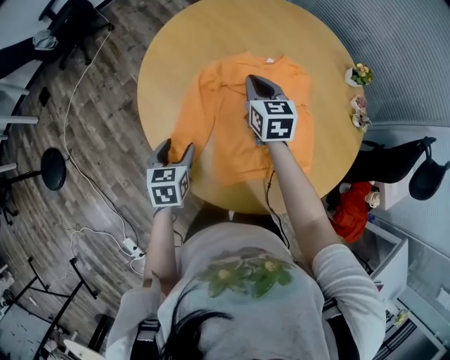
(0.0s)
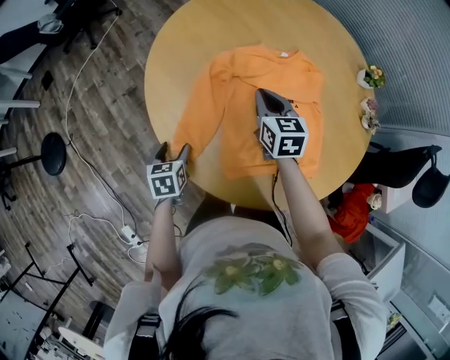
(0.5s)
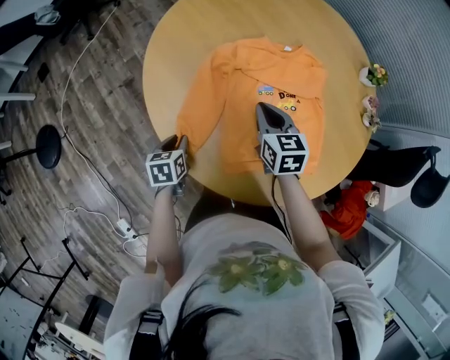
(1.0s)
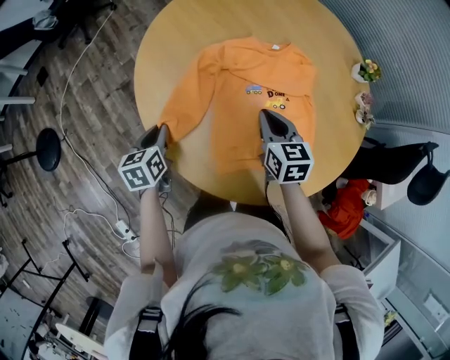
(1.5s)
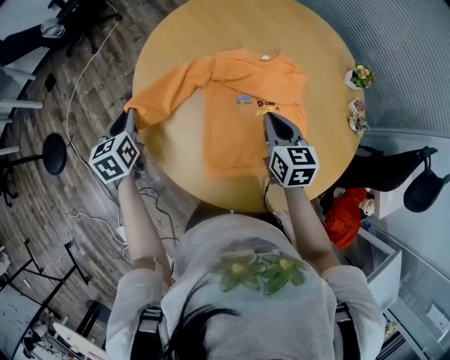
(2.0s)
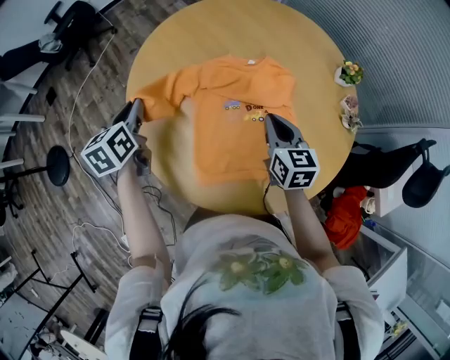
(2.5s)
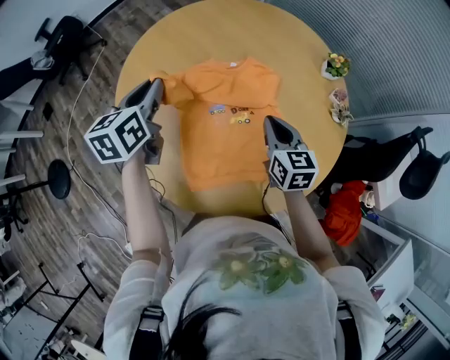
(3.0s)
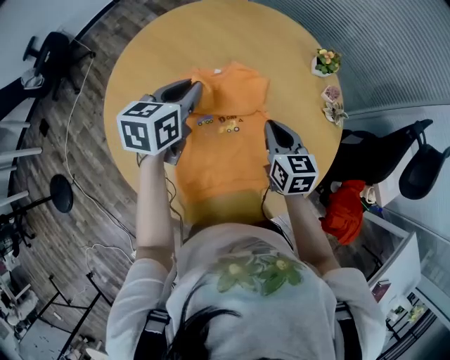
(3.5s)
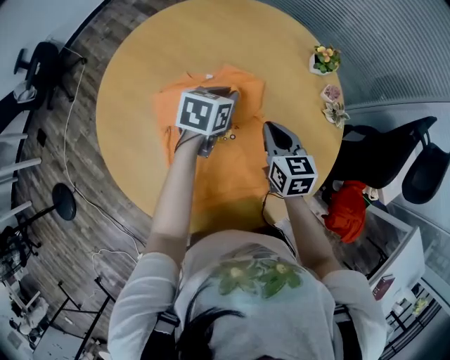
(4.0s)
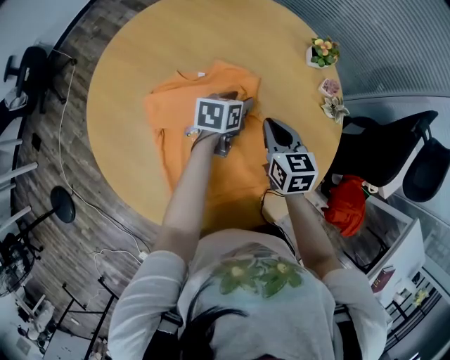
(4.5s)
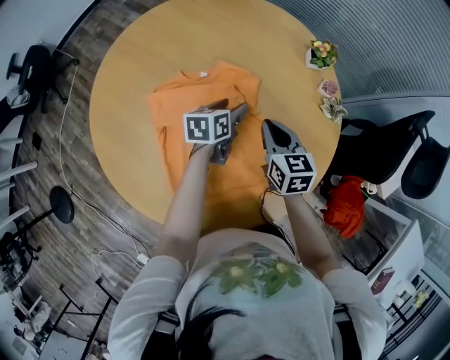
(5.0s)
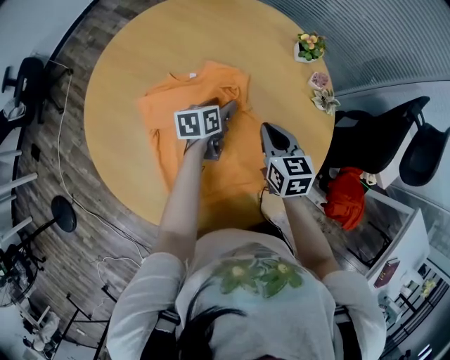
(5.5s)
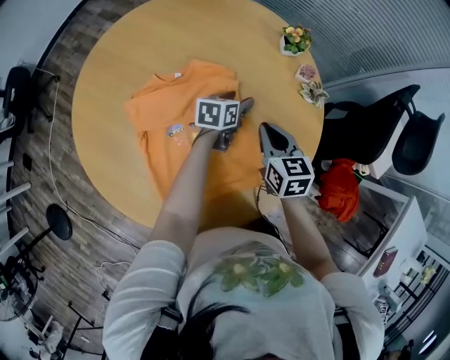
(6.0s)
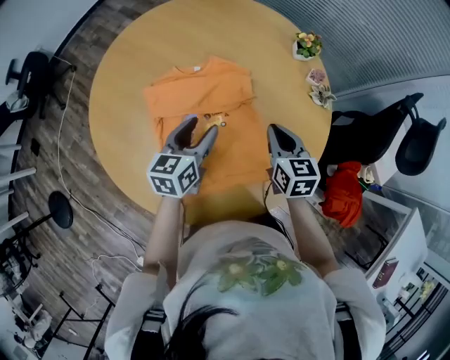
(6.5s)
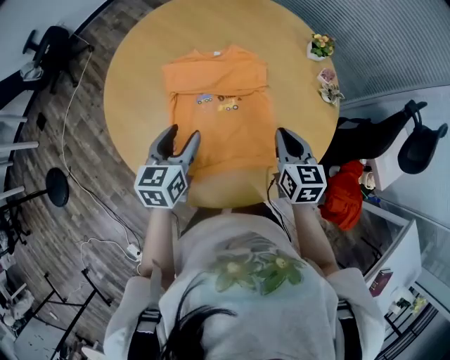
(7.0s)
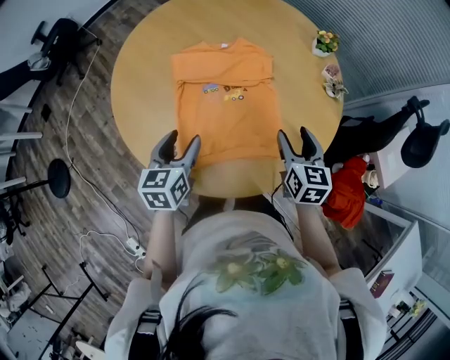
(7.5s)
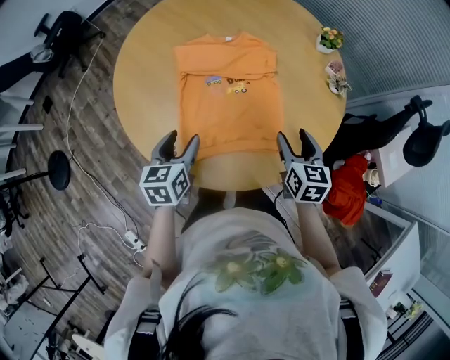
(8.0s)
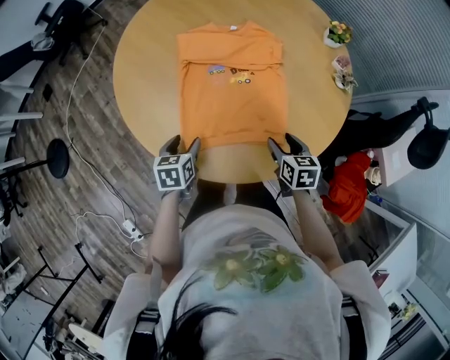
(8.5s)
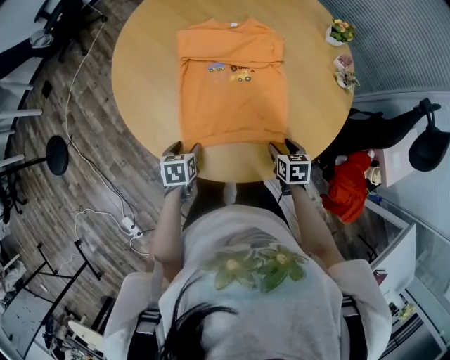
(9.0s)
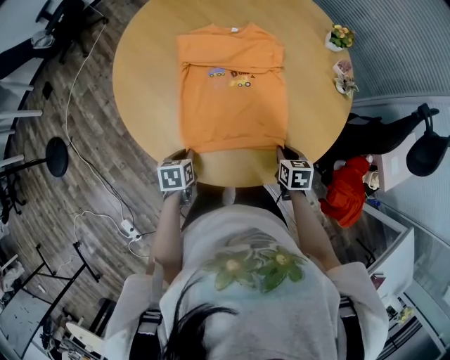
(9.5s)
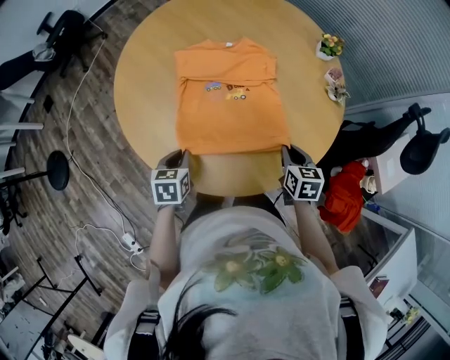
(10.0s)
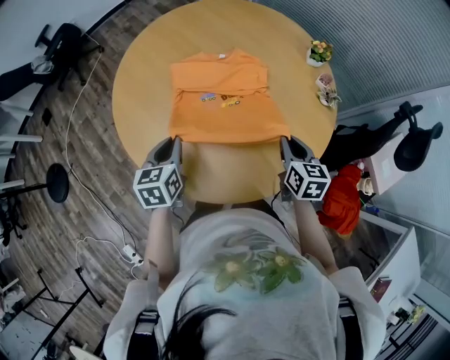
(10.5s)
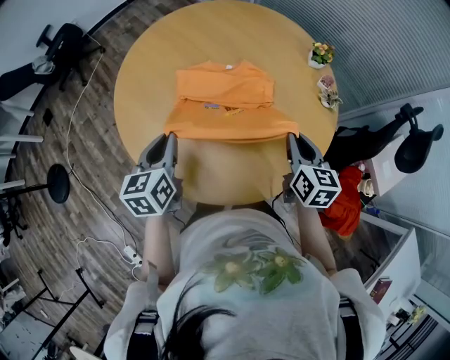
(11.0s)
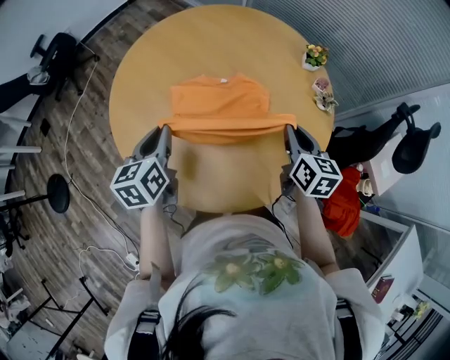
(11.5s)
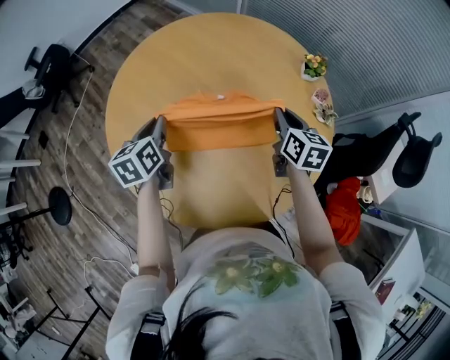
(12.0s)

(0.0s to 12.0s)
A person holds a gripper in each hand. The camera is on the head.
0.0s - 2.0s: The left gripper moves to the left, upward and forward, about 15 cm, swivels approximately 20 degrees, and closes, while the right gripper is displaced backward and to the right by roughly 15 cm.
2.0s - 4.0s: The left gripper goes upward and returns, approximately 10 cm each way, and rotates approximately 50 degrees. Meanwhile the right gripper moves some 15 cm.
4.0s - 6.0s: The left gripper is displaced to the right and downward by approximately 15 cm, and opens up. The right gripper moves to the right, some 5 cm.
6.0s - 8.0s: The right gripper is displaced backward by roughly 15 cm, and opens up, while the left gripper goes roughly 40 cm backward and to the left, and turns by approximately 40 degrees.
8.0s - 10.0s: The two grippers go roughly 10 cm downward. The left gripper closes. Meanwhile the right gripper closes.
10.0s - 12.0s: Both grippers move forward and upward, some 25 cm. The left gripper swivels about 20 degrees.

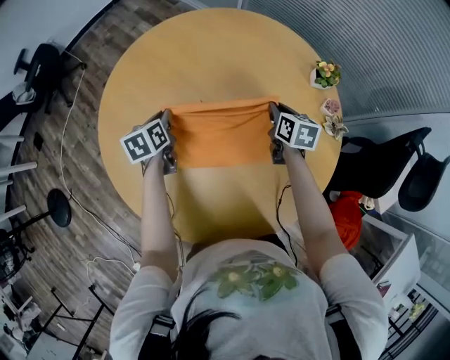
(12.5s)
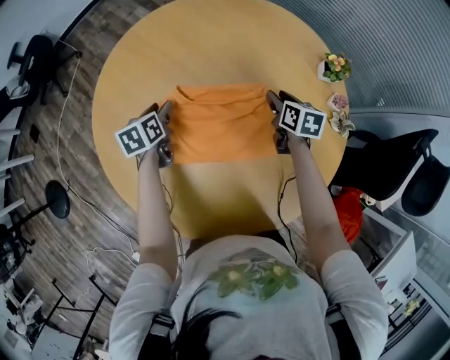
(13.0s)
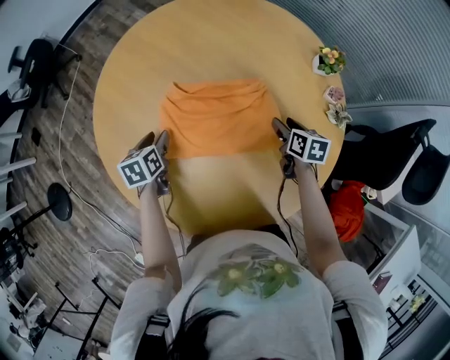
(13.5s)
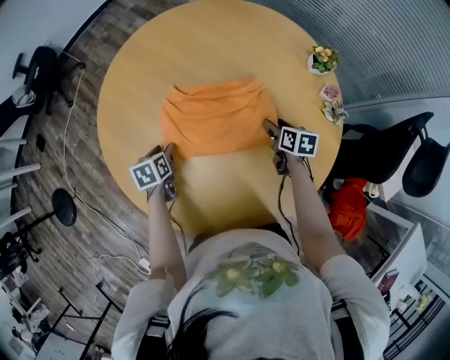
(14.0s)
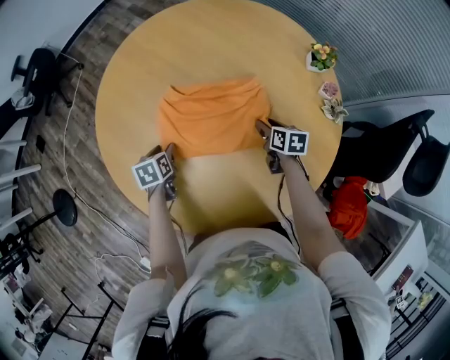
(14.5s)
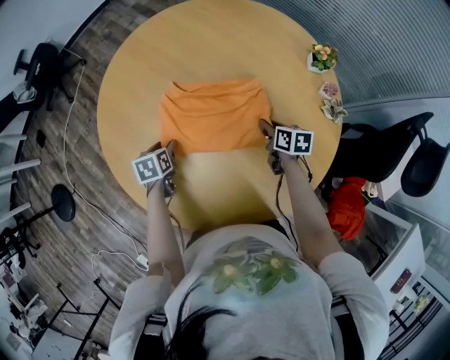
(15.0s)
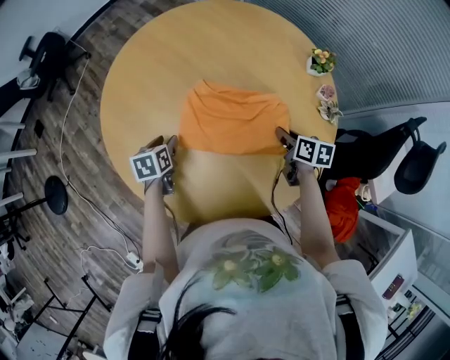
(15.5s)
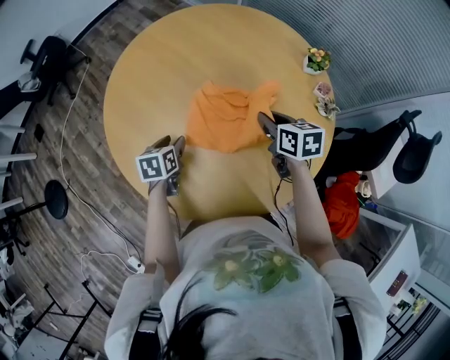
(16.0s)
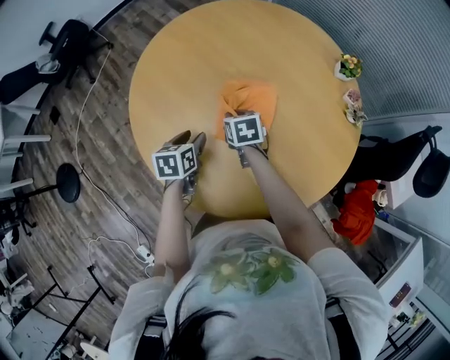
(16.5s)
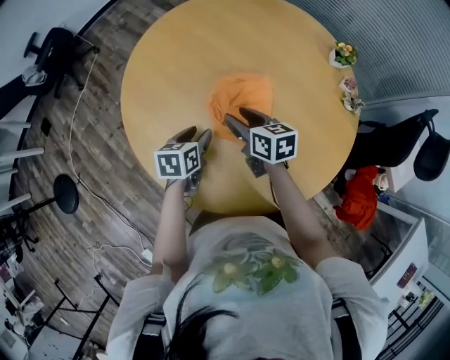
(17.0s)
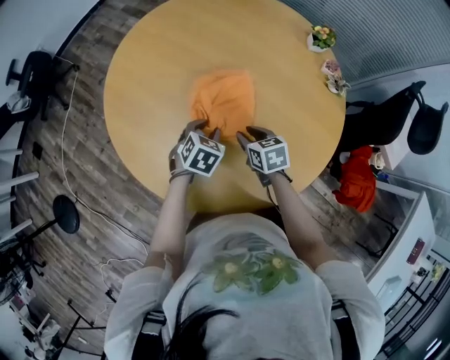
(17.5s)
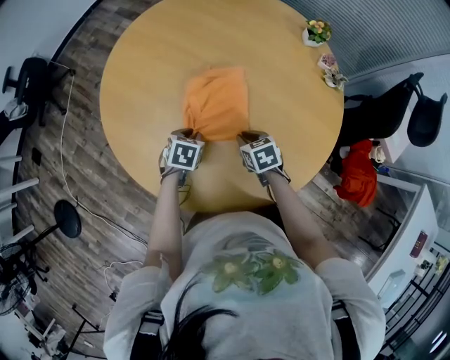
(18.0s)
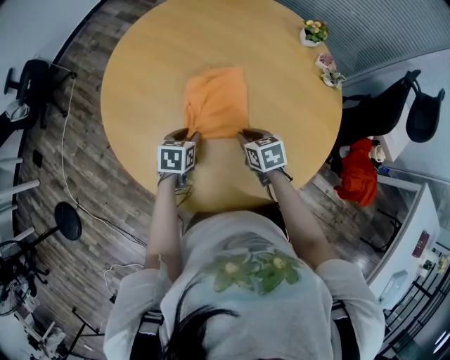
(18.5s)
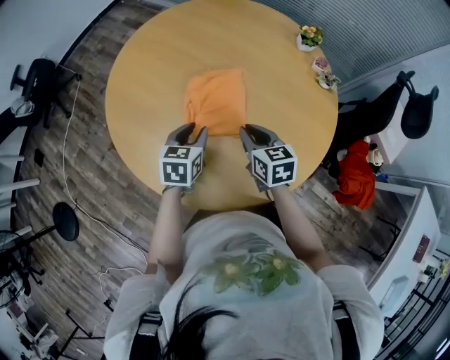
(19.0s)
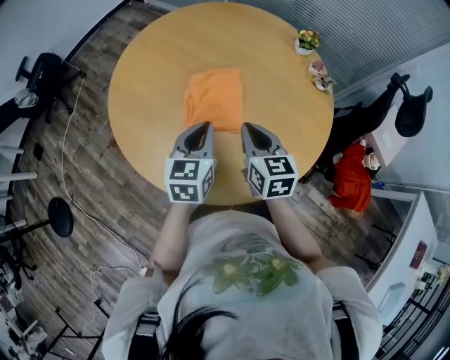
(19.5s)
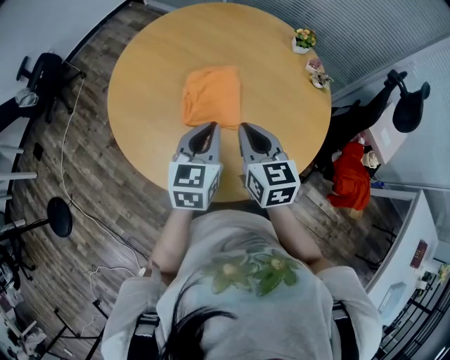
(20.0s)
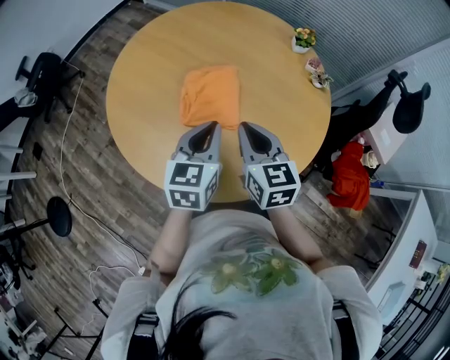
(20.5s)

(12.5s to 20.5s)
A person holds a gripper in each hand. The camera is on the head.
12.5s - 14.5s: The left gripper travels backward and downward by about 15 cm, and opens up; the right gripper goes some 15 cm downward and backward, and opens.
14.5s - 16.5s: The left gripper shifts approximately 10 cm upward and backward. Meanwhile the right gripper travels to the left by some 25 cm, turns by about 20 degrees, and closes.
16.5s - 18.5s: The left gripper heads downward, covering some 5 cm, and changes its angle by about 20 degrees; the right gripper shifts roughly 15 cm backward and to the right, travels upward and back again, roughly 5 cm each way, and opens, then closes again.
18.5s - 20.5s: The left gripper travels upward and to the right by roughly 25 cm, angles its fingers upward, by some 30 degrees, and closes its fingers. Meanwhile the right gripper is displaced upward by some 20 cm, and turns by about 30 degrees.

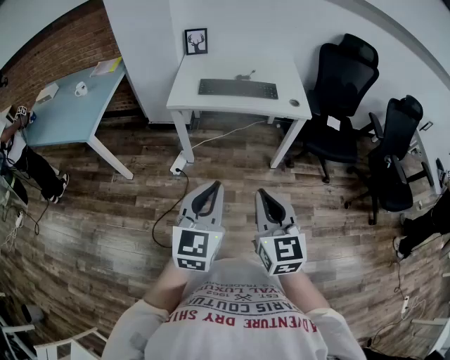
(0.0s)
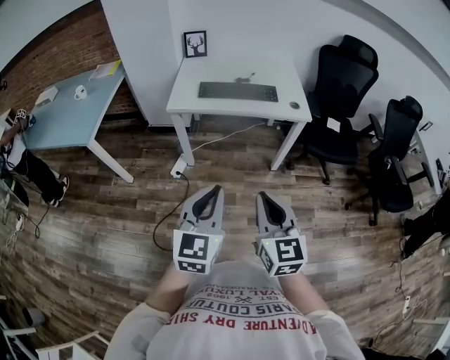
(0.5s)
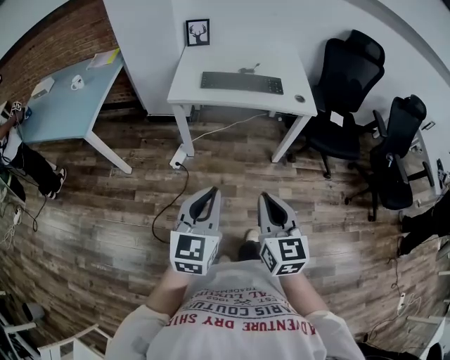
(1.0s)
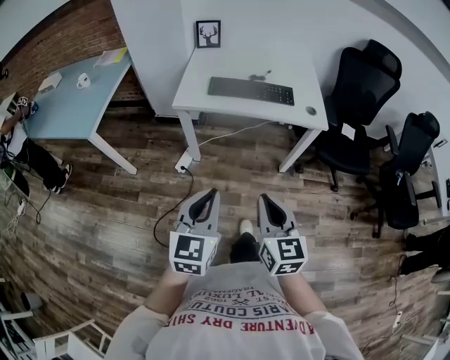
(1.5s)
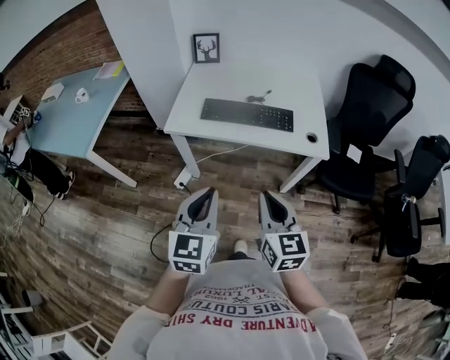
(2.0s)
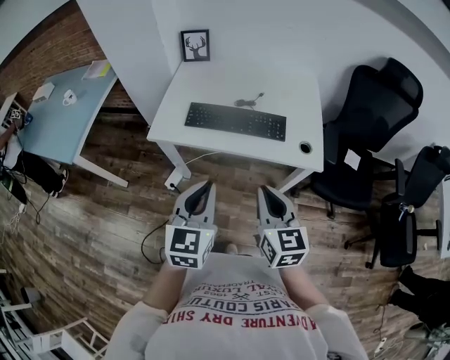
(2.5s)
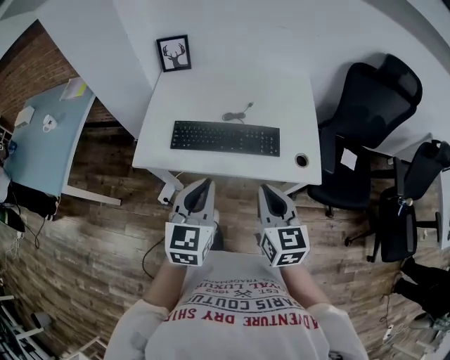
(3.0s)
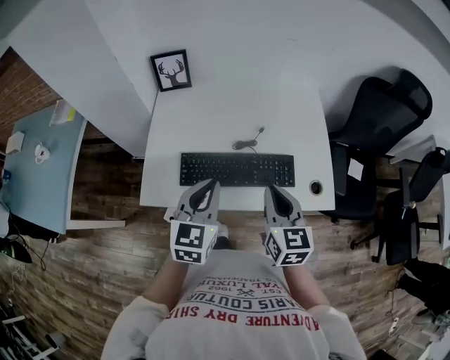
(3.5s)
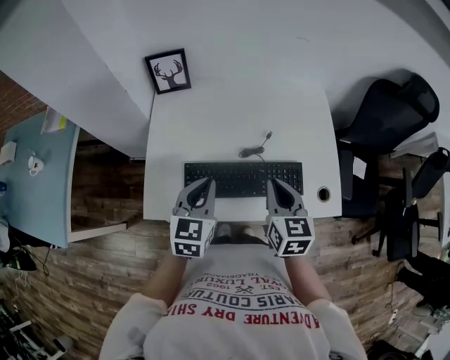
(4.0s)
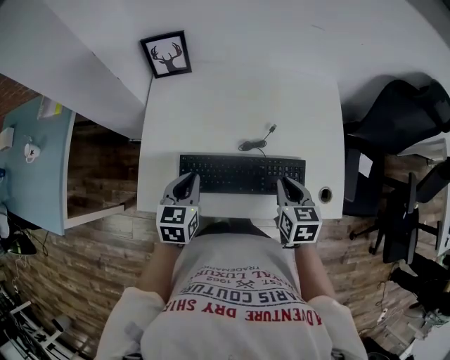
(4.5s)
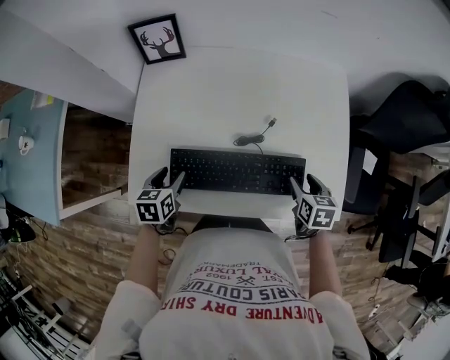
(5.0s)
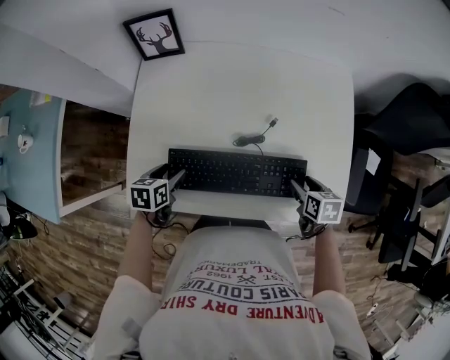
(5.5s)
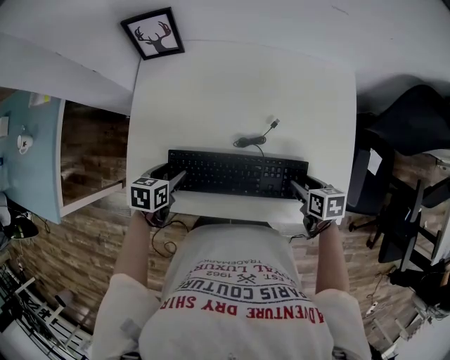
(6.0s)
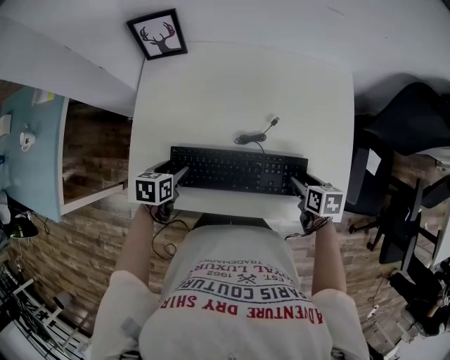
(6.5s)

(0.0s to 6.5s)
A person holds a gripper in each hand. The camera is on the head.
0.0s - 2.0s: Both grippers travel together forward, some 25 cm.
2.0s - 4.5s: Both grippers are carried forward, approximately 50 cm. The left gripper changes its angle by roughly 30 degrees; the right gripper changes its angle by roughly 30 degrees.
4.5s - 6.5s: The left gripper is displaced downward by some 10 cm, swivels approximately 30 degrees, and opens up. Meanwhile the right gripper moves downward and to the right, some 15 cm, turns by some 30 degrees, and opens.
